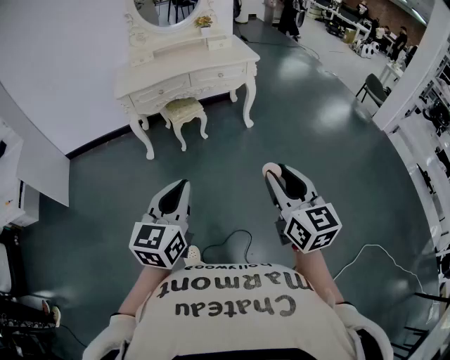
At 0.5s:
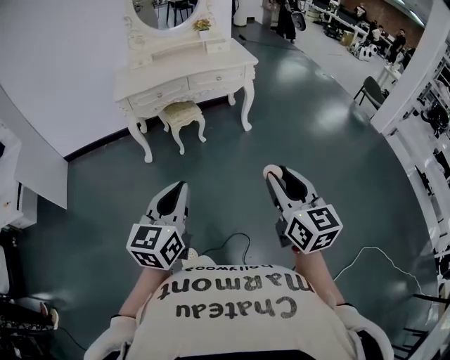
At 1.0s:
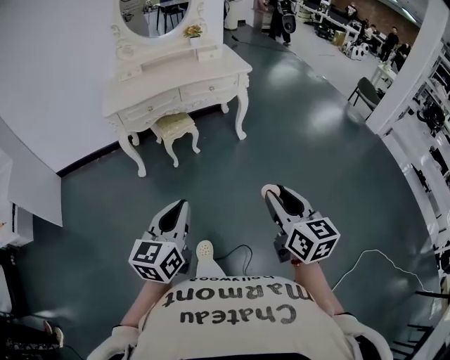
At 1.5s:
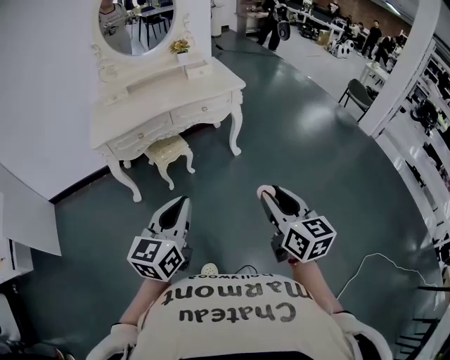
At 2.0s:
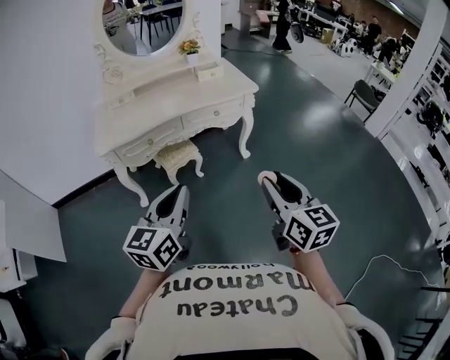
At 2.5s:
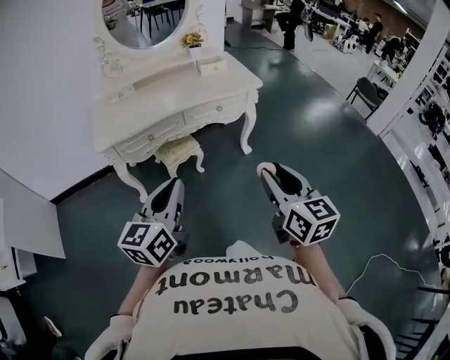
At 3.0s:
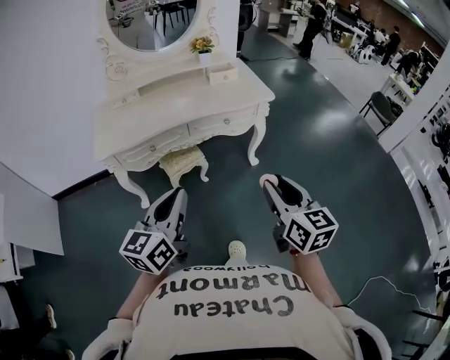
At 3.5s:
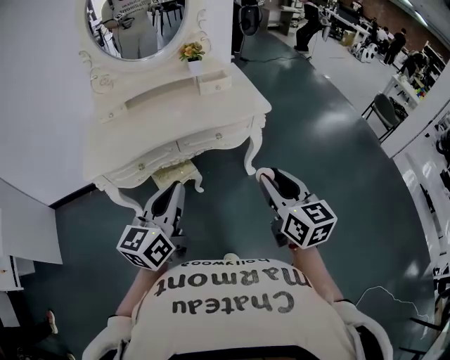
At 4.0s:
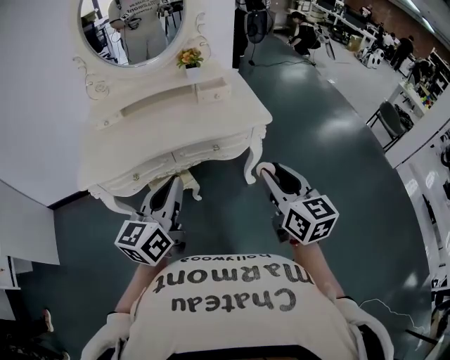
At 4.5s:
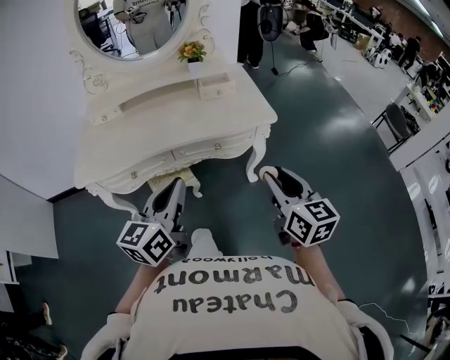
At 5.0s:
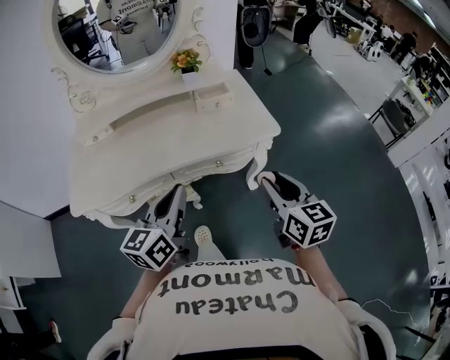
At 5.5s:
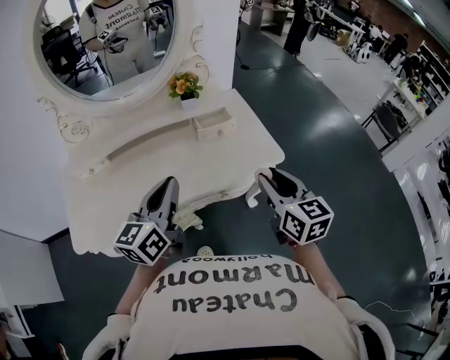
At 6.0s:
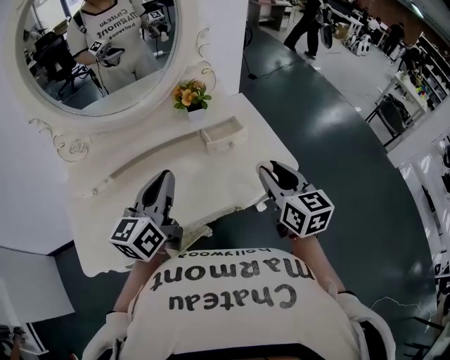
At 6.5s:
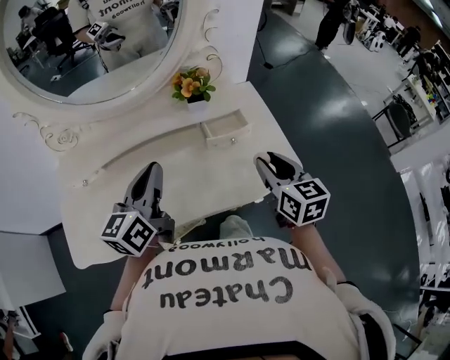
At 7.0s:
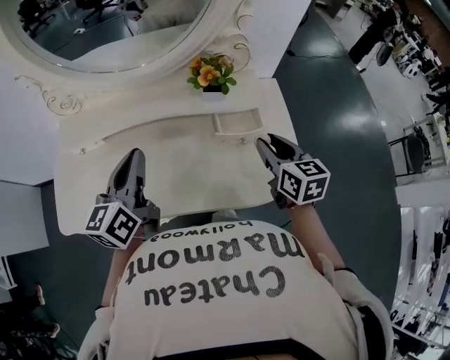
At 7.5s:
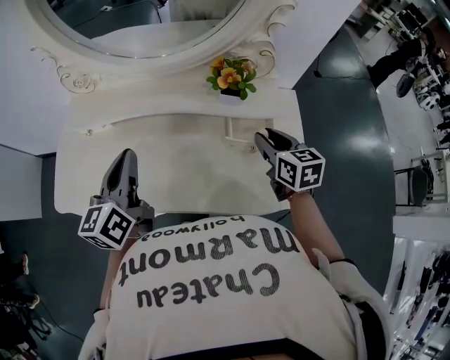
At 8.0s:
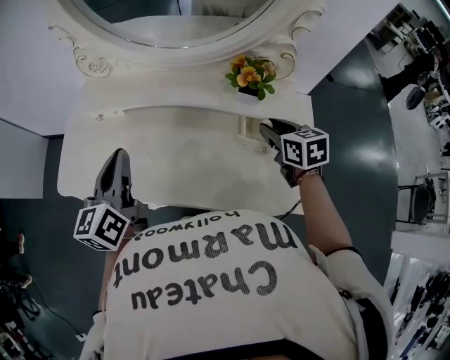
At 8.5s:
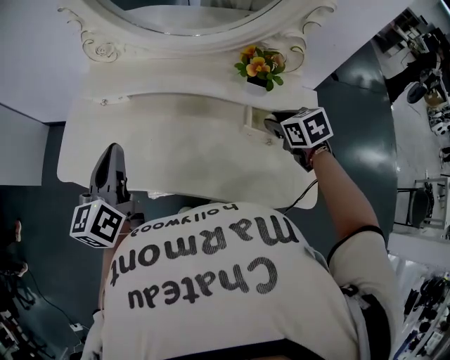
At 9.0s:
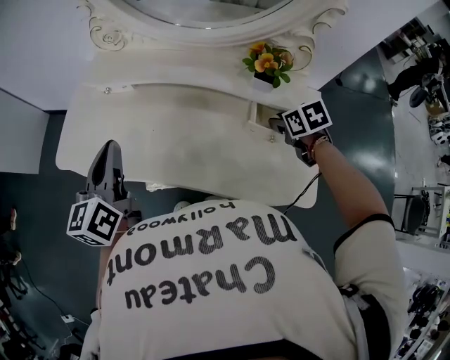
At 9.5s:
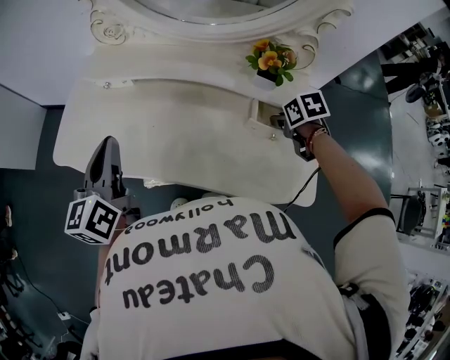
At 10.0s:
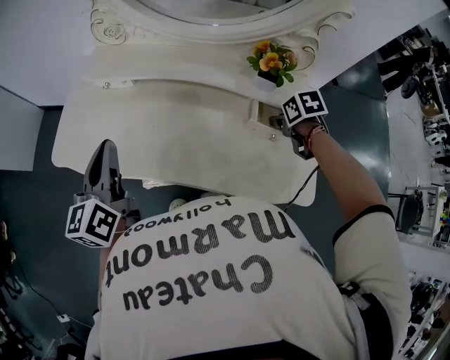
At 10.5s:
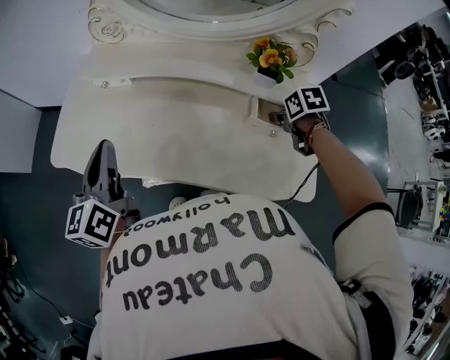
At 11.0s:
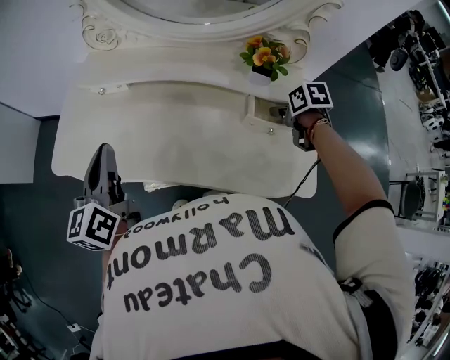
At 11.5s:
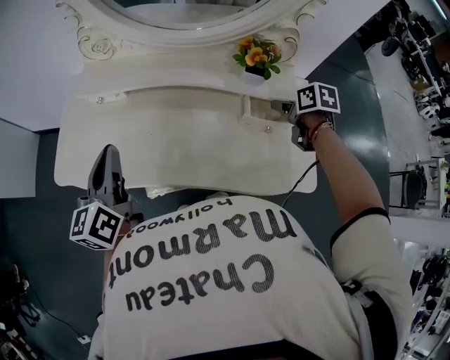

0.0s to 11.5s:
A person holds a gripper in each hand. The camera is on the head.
0.0s to 2.0s: The grippers both shift forward by roughly 30 cm.
2.0s to 4.0s: Both grippers move forward, approximately 30 cm.
4.0s to 6.0s: The grippers both shift forward by some 35 cm.
6.0s to 7.5s: The right gripper ends up some 25 cm from where it was, and swivels some 30 degrees; the left gripper ends up roughly 10 cm from where it was, and swivels some 40 degrees.
7.5s to 9.5s: The left gripper travels to the left by about 10 cm; the right gripper shifts roughly 10 cm downward, and tilts its fingers approximately 40 degrees downward.
9.5s to 11.5s: The right gripper changes place by roughly 5 cm, and turns by approximately 30 degrees.

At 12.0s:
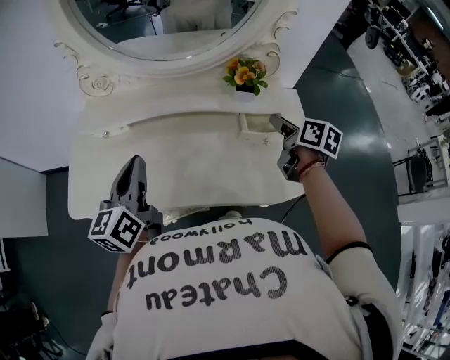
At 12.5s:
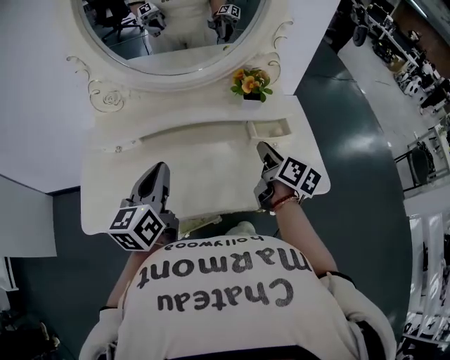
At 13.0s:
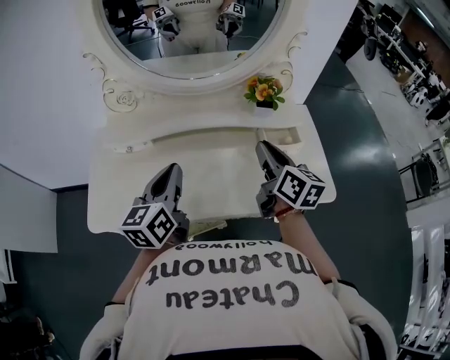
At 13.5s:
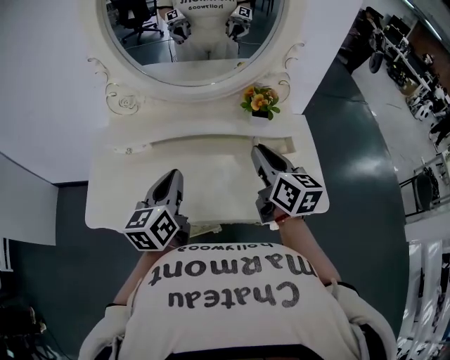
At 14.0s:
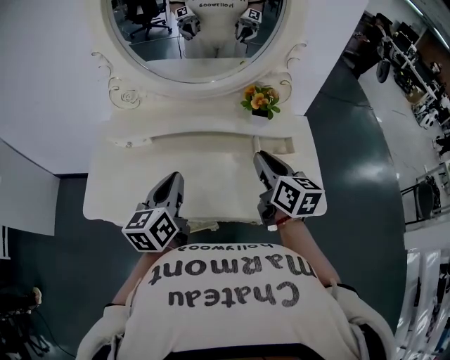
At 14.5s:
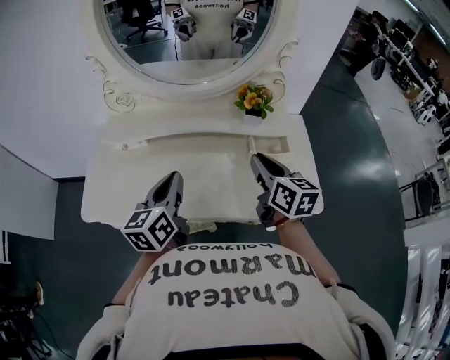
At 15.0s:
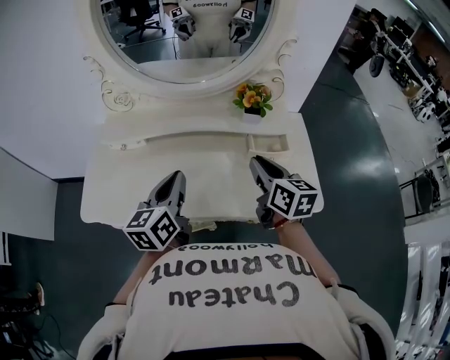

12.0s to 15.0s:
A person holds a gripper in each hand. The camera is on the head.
12.0s to 13.5s: The right gripper goes roughly 15 cm to the left, upward and backward, swivels approximately 30 degrees, and closes.
13.5s to 15.0s: The right gripper moves approximately 5 cm.

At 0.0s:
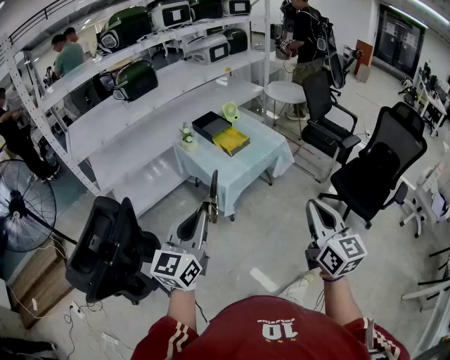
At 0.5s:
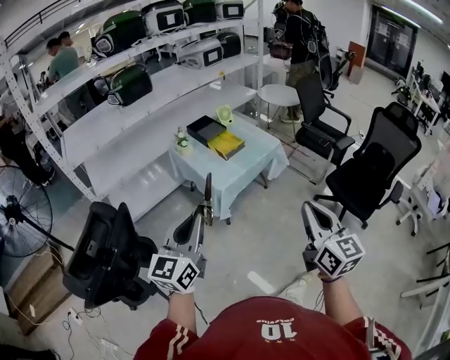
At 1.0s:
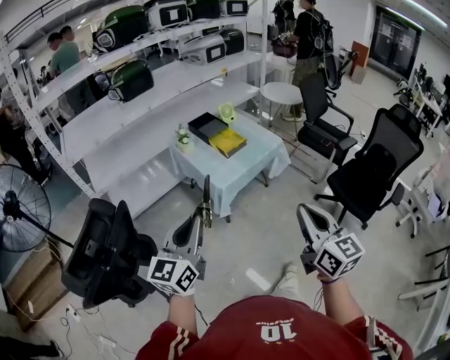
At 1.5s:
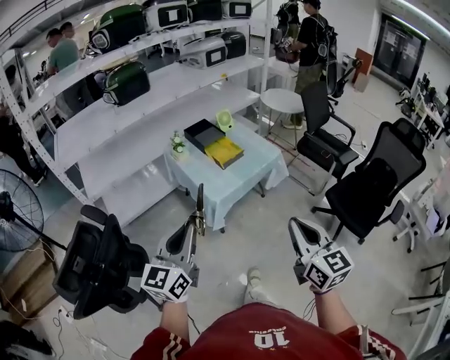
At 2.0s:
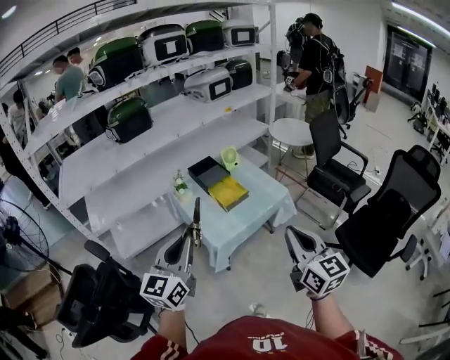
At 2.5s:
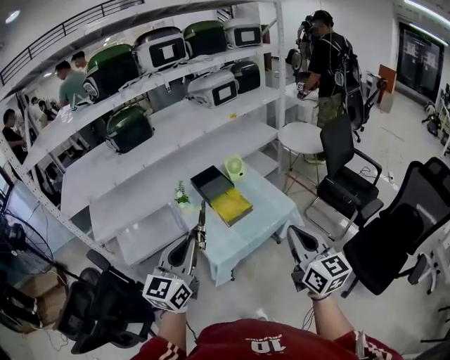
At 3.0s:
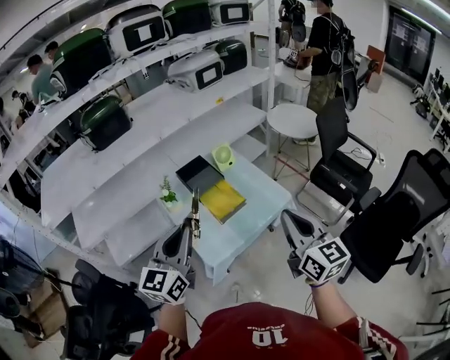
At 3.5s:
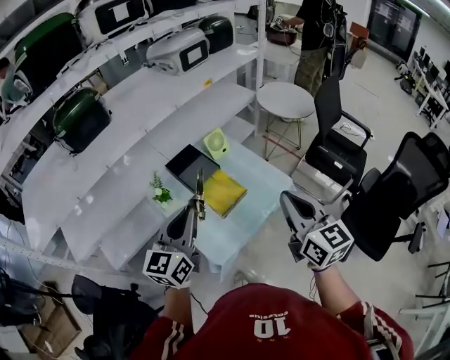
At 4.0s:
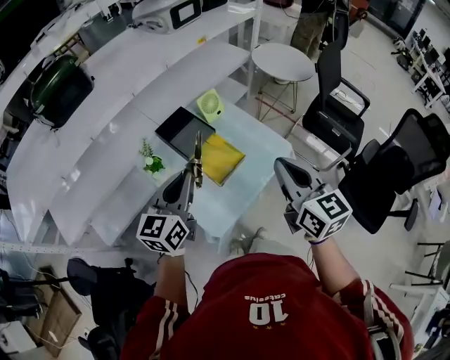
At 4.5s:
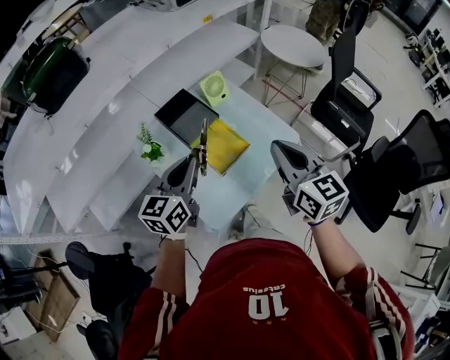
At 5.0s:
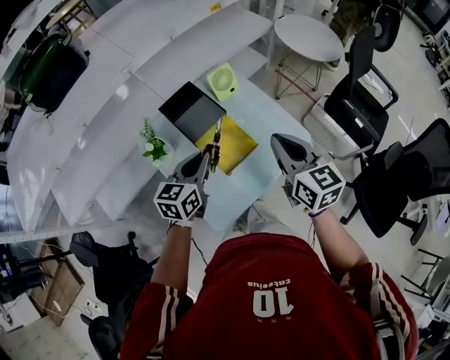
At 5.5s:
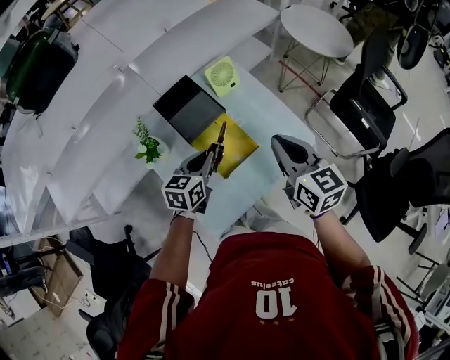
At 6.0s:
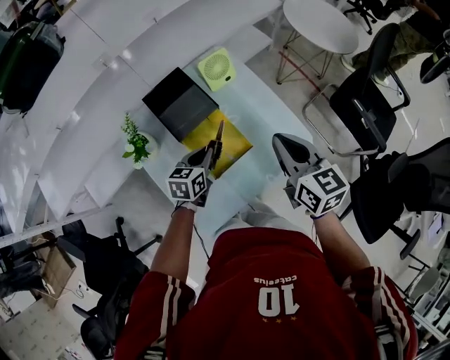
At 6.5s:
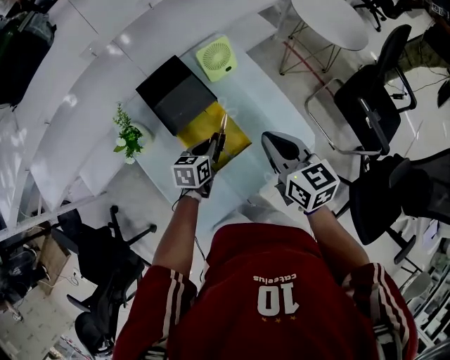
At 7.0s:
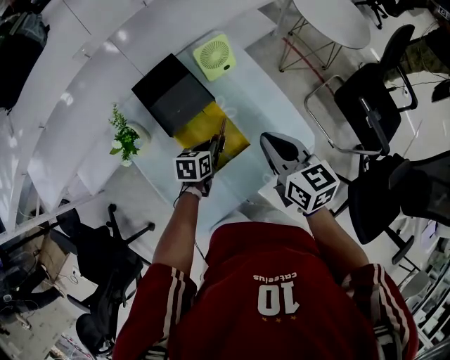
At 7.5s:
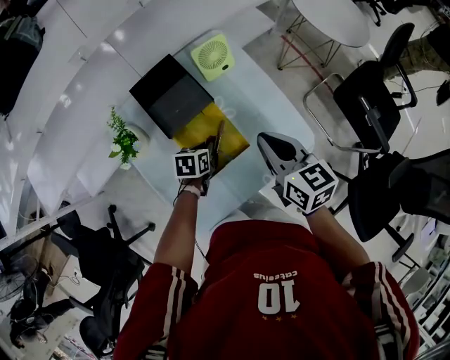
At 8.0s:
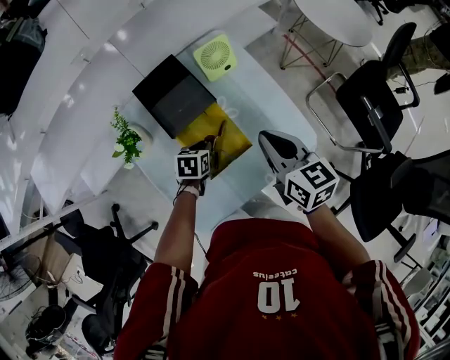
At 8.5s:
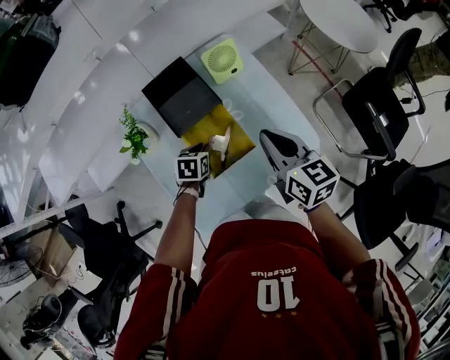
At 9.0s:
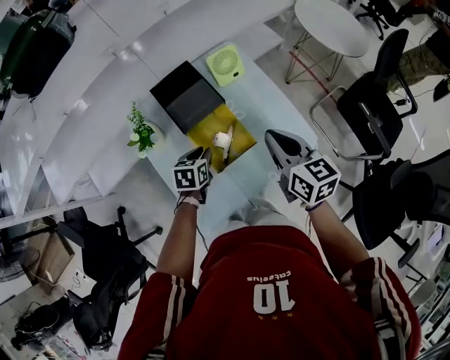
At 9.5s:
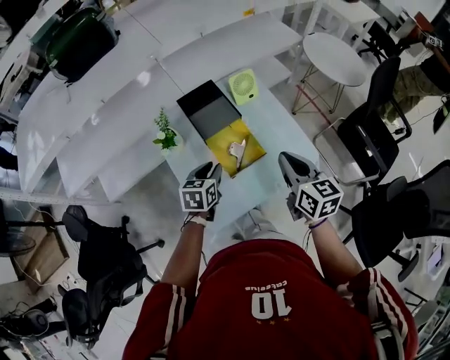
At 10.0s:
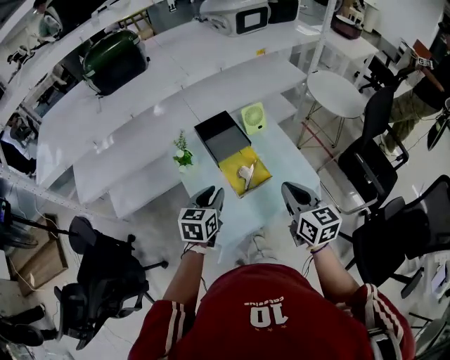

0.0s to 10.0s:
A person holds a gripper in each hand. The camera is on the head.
0.0s to 2.0s: Both grippers move forward, roughly 25 cm.
2.0s to 4.0s: The two grippers go about 40 cm forward.
4.0s to 6.0s: The left gripper travels downward and forward by approximately 35 cm, and angles its fingers downward, by approximately 30 degrees, while the right gripper shifts approximately 25 cm forward and downward.
6.0s to 8.0s: The right gripper heads downward, covering about 5 cm. Meanwhile the left gripper moves downward, some 10 cm, and swivels approximately 20 degrees.
8.0s to 10.0s: The right gripper travels backward and upward by approximately 20 cm, while the left gripper travels upward and backward by some 35 cm, and rotates roughly 30 degrees.

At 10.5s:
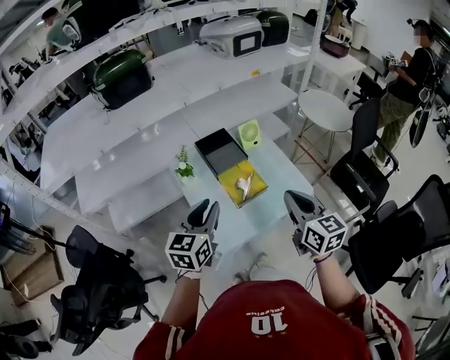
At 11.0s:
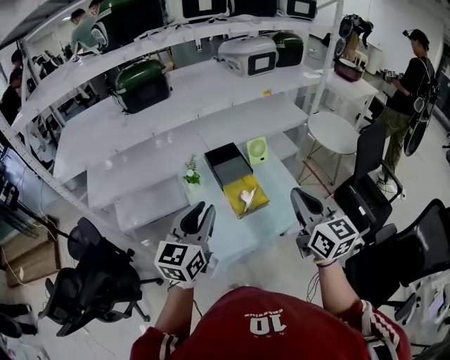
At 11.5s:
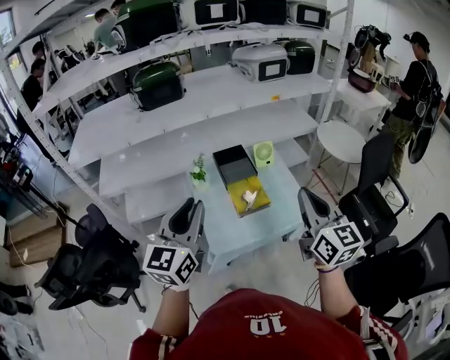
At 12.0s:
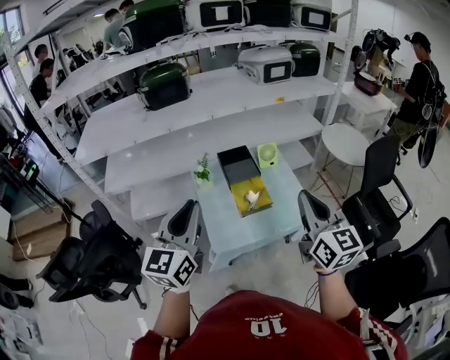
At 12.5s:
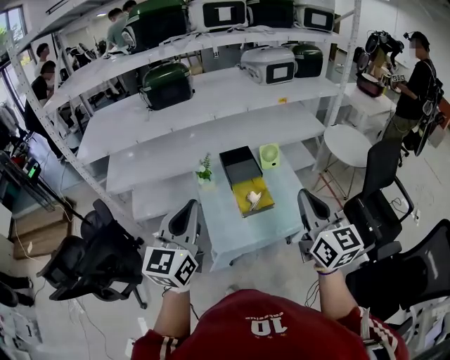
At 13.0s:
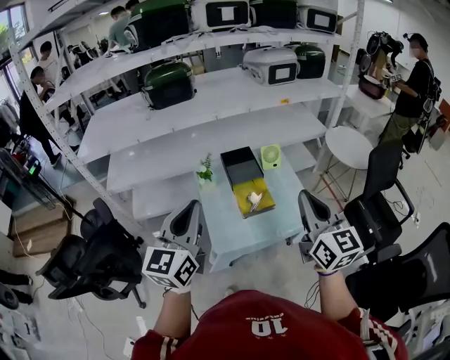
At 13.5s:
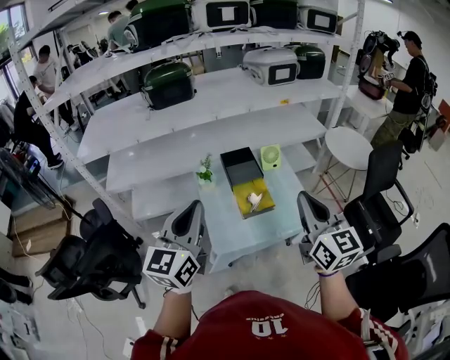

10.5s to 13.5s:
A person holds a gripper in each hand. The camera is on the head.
10.5s to 12.0s: The right gripper heads upward, backward and to the right, covering some 15 cm, while the left gripper travels upward and backward by approximately 20 cm, and changes its angle by roughly 30 degrees.
12.0s to 13.5s: There are only small adjustments of the grippers.
